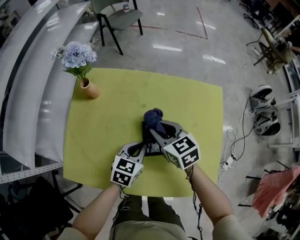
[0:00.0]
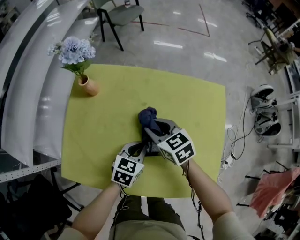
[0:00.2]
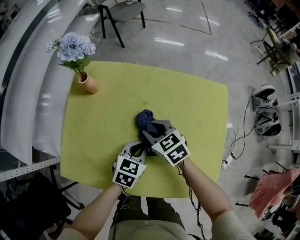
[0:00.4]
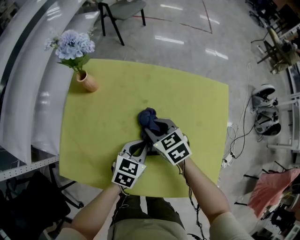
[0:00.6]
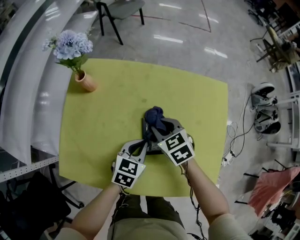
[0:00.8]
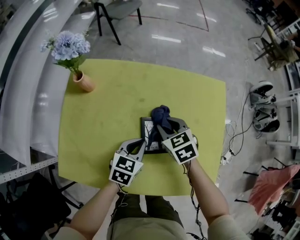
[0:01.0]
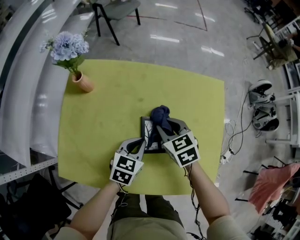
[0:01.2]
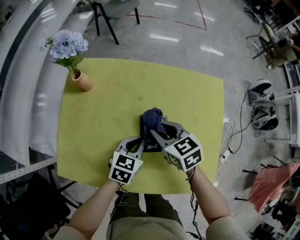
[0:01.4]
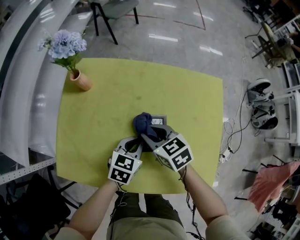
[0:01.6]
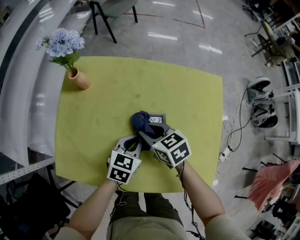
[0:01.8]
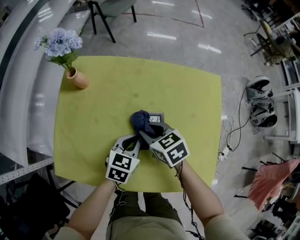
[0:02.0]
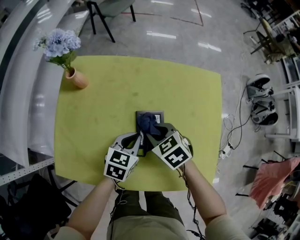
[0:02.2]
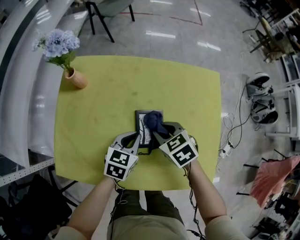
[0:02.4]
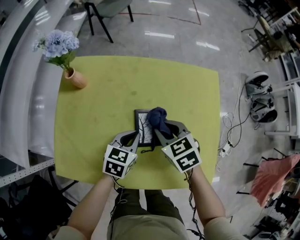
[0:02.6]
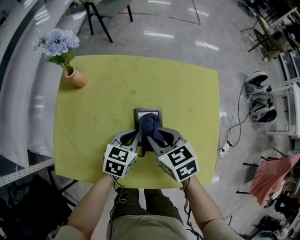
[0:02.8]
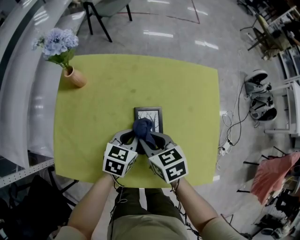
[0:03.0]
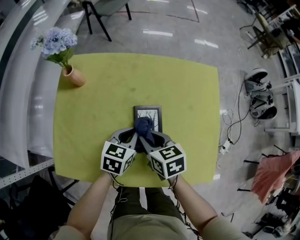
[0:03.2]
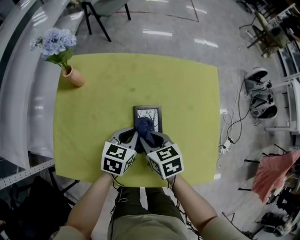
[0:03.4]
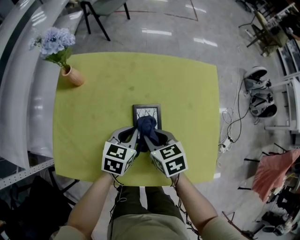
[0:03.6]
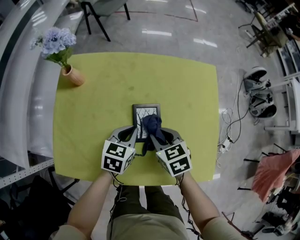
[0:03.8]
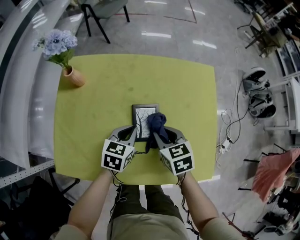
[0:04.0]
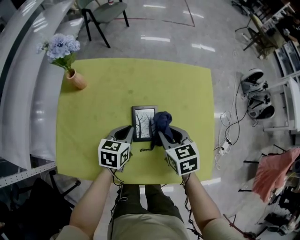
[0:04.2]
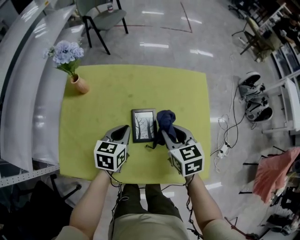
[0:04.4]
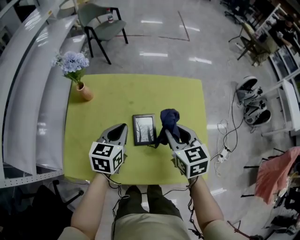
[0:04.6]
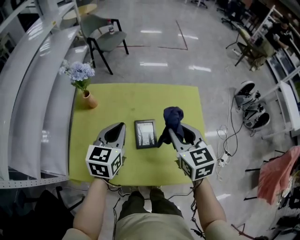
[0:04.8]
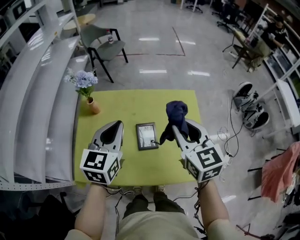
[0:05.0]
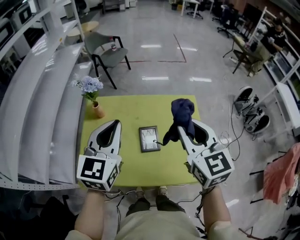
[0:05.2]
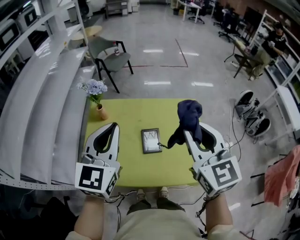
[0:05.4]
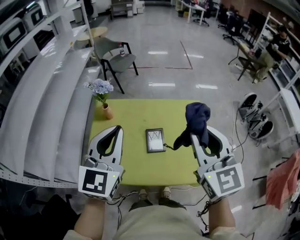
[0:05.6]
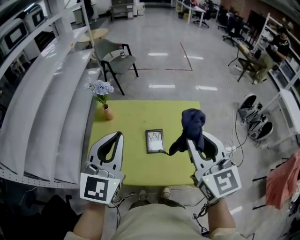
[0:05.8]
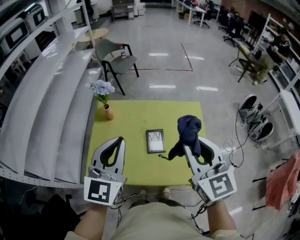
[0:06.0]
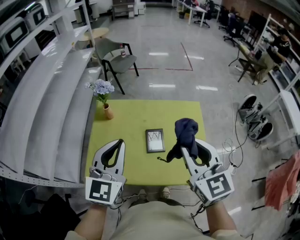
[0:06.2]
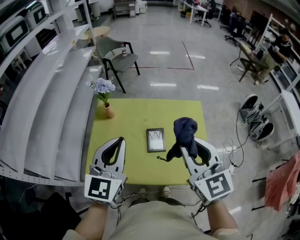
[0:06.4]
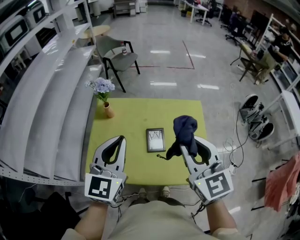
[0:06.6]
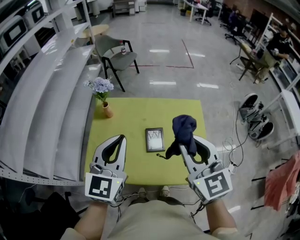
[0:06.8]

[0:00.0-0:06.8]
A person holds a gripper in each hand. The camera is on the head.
0:01.4 to 0:02.8: The grippers stay close to where they were, moving slightly.
0:02.8 to 0:04.0: The right gripper shifts by approximately 5 cm.
0:04.0 to 0:05.4: Both grippers travel together upward, roughly 40 cm. The right gripper angles its fingers upward, by approximately 40 degrees; the left gripper points its fingers about 40 degrees further upward.
0:05.4 to 0:06.8: The grippers stay close to where they were, moving slightly.

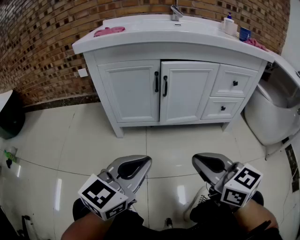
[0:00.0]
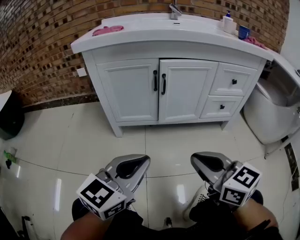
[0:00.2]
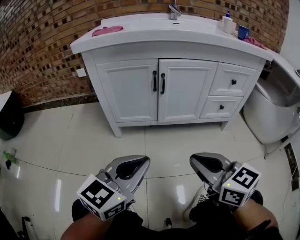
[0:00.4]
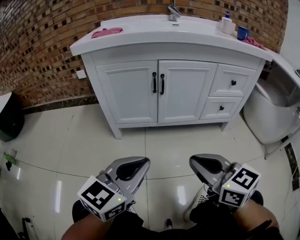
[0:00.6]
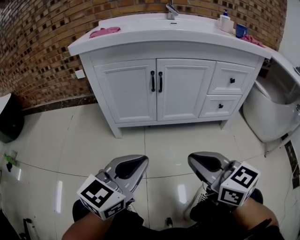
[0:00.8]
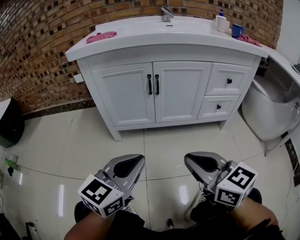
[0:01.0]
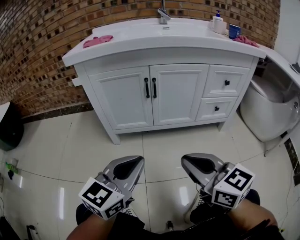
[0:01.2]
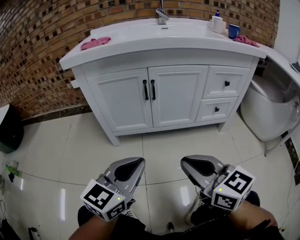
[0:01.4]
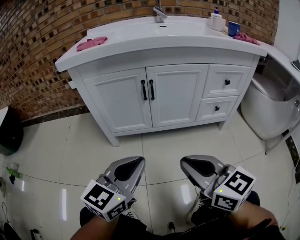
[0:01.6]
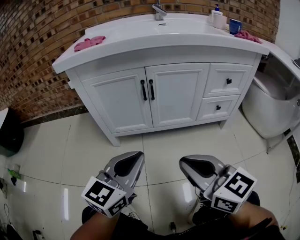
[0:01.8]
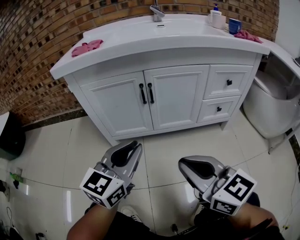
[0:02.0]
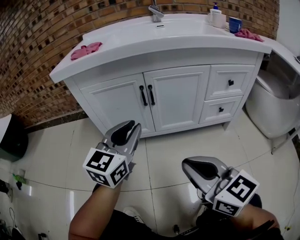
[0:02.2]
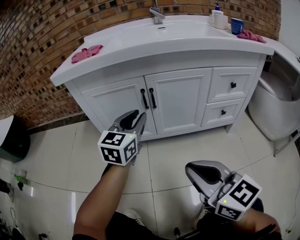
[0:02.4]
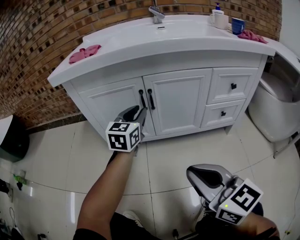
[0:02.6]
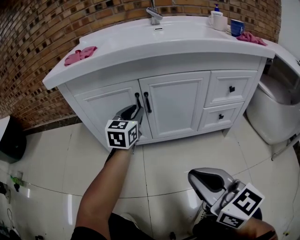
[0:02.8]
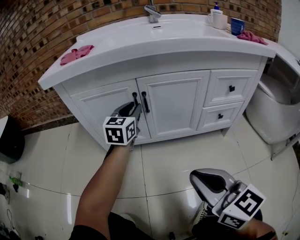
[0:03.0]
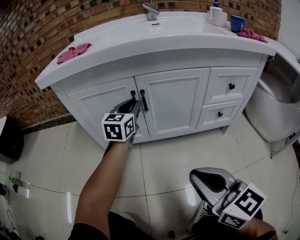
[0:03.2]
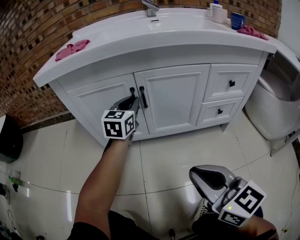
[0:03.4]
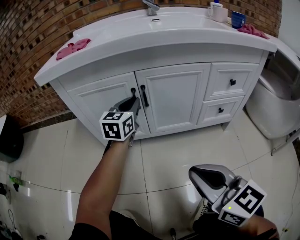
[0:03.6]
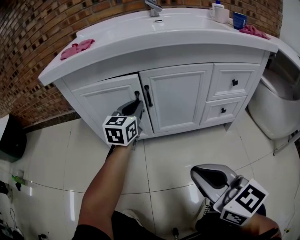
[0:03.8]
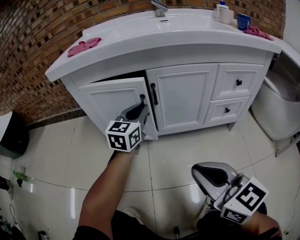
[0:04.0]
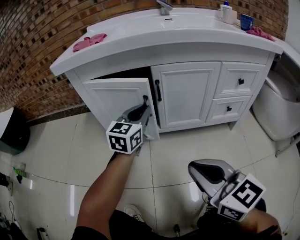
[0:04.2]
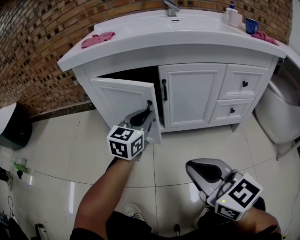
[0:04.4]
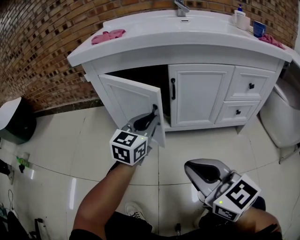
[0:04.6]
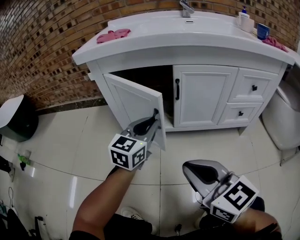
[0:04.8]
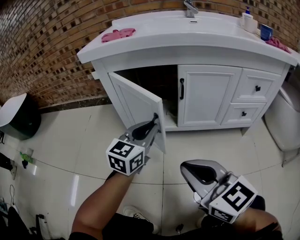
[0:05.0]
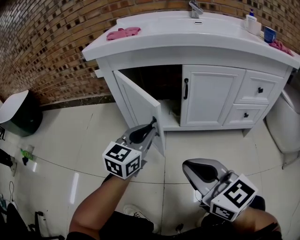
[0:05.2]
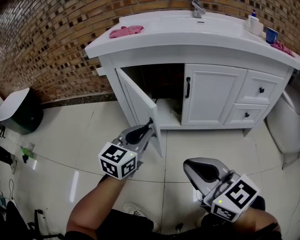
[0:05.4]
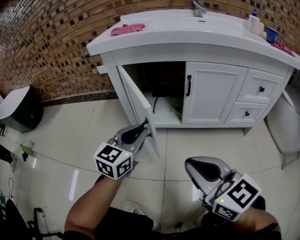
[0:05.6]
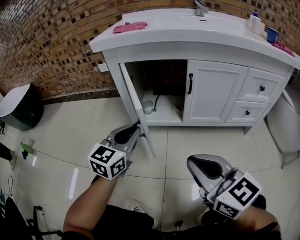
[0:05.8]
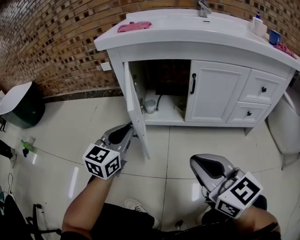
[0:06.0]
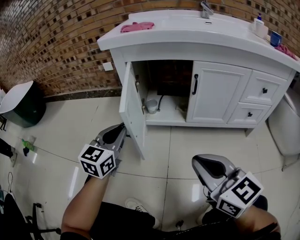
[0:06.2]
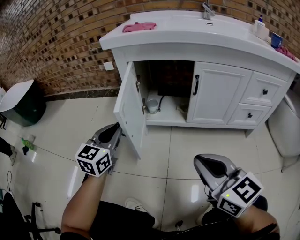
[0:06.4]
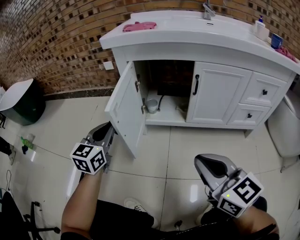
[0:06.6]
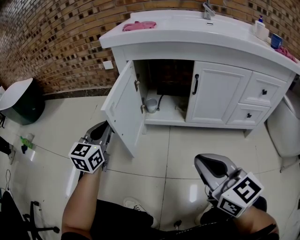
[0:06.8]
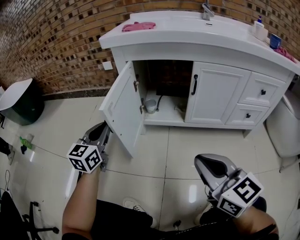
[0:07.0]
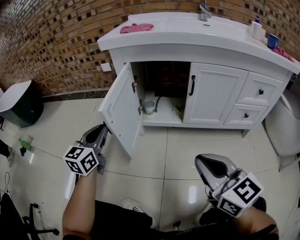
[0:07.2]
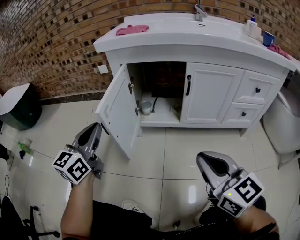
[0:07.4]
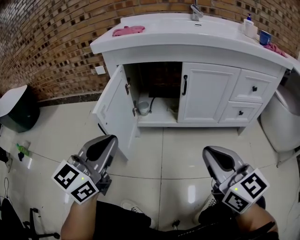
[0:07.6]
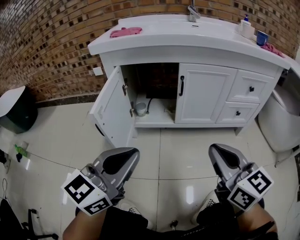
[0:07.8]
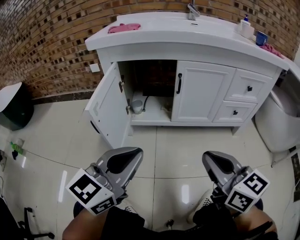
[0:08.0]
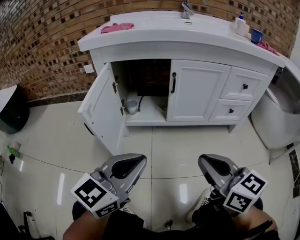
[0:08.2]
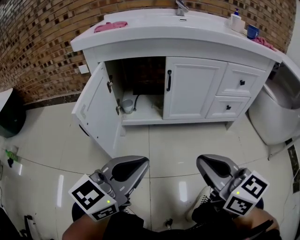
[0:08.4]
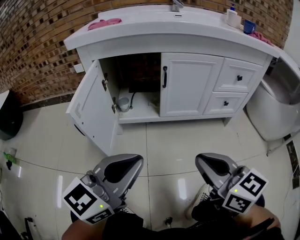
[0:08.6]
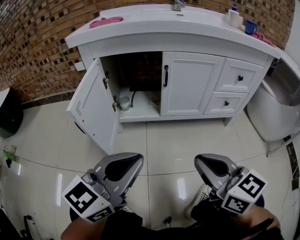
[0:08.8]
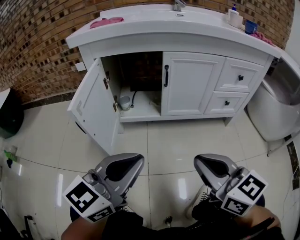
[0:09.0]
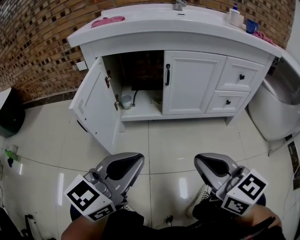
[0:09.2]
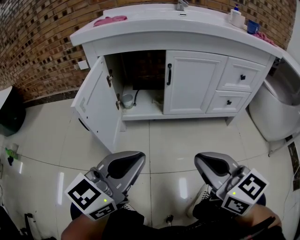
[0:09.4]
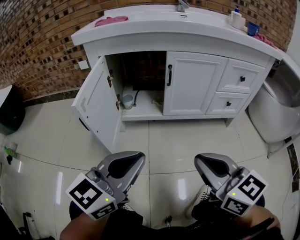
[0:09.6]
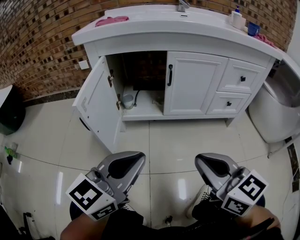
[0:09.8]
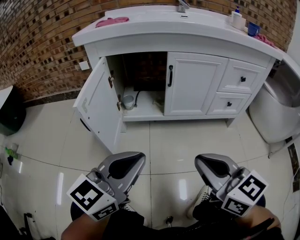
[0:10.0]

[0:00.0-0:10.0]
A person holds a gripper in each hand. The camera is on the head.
0:00.0 to 0:01.4: There are only small adjustments of the grippers.
0:01.4 to 0:02.8: The right gripper changes place by roughly 5 cm. Meanwhile the left gripper travels forward by about 30 cm, and opens its fingers.
0:02.8 to 0:04.2: The left gripper goes some 5 cm backward.
0:04.2 to 0:05.8: The right gripper heads to the left, covering roughly 10 cm, while the left gripper is displaced to the left and backward by about 20 cm.
0:05.8 to 0:07.2: The left gripper goes some 15 cm to the left.
0:07.2 to 0:08.6: The left gripper shifts roughly 25 cm to the right and backward, and rotates roughly 40 degrees. Meanwhile the right gripper shifts about 5 cm to the right.
0:08.6 to 0:10.0: The grippers make only small movements.
